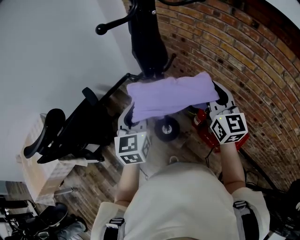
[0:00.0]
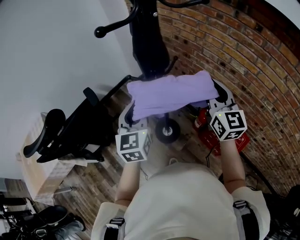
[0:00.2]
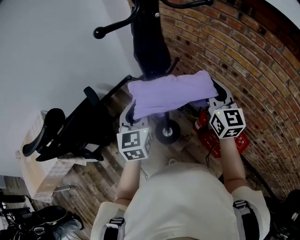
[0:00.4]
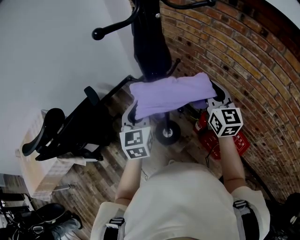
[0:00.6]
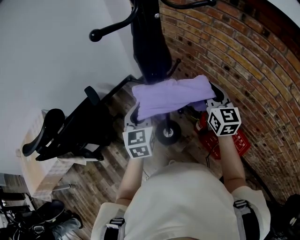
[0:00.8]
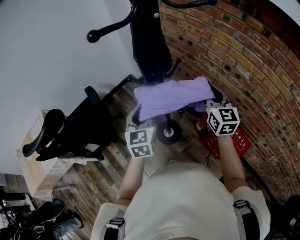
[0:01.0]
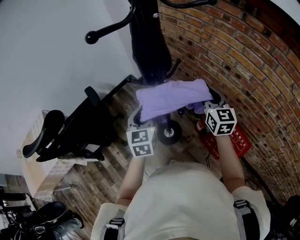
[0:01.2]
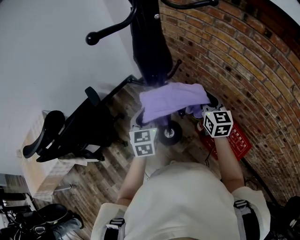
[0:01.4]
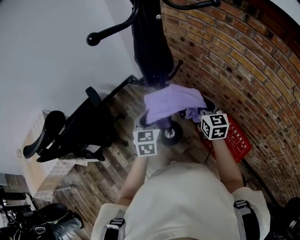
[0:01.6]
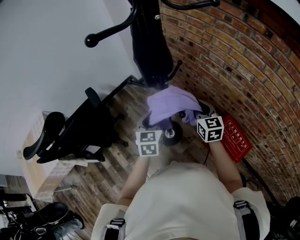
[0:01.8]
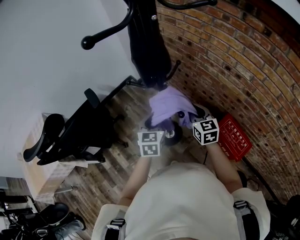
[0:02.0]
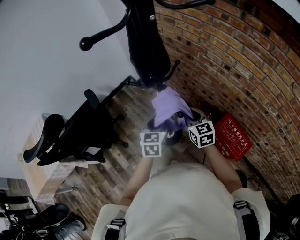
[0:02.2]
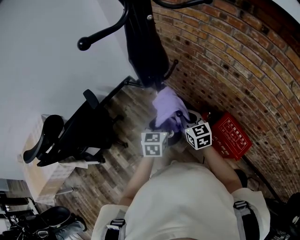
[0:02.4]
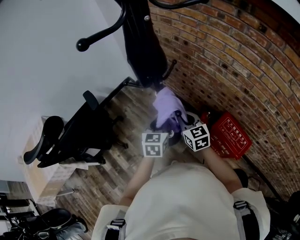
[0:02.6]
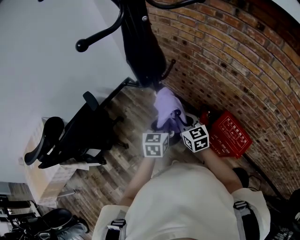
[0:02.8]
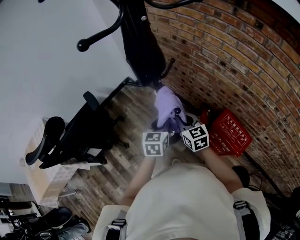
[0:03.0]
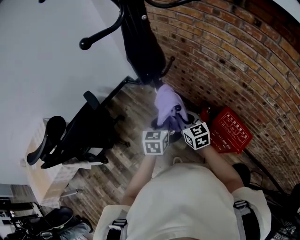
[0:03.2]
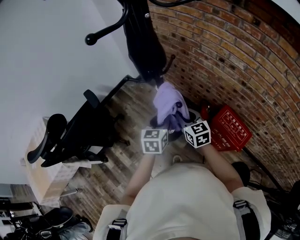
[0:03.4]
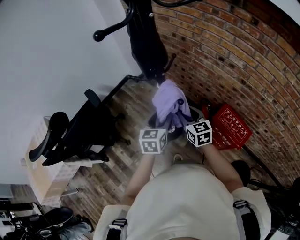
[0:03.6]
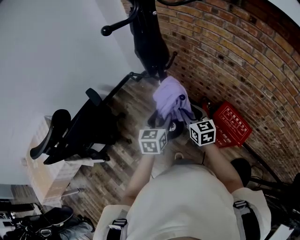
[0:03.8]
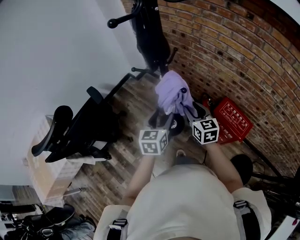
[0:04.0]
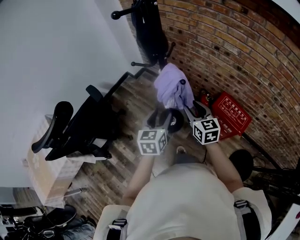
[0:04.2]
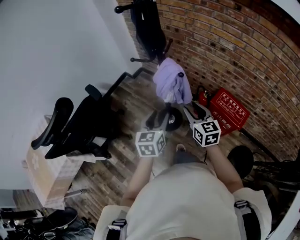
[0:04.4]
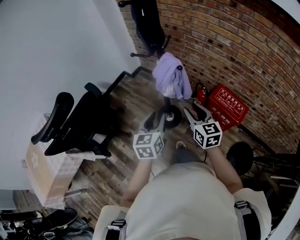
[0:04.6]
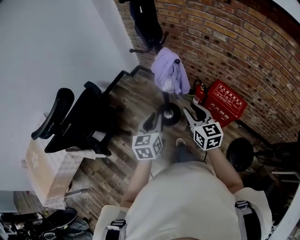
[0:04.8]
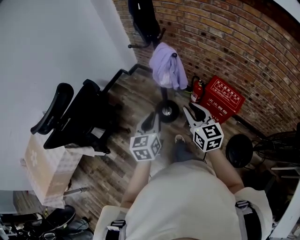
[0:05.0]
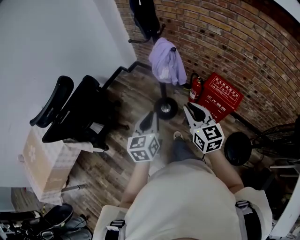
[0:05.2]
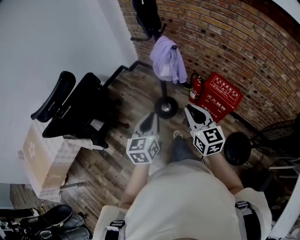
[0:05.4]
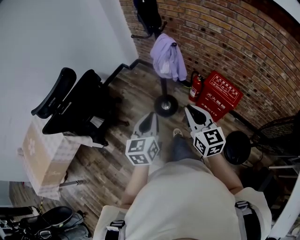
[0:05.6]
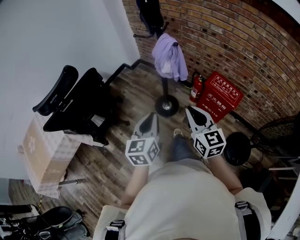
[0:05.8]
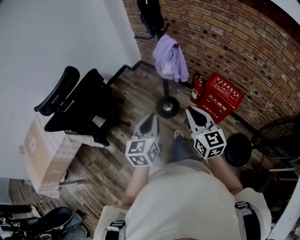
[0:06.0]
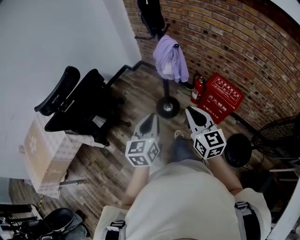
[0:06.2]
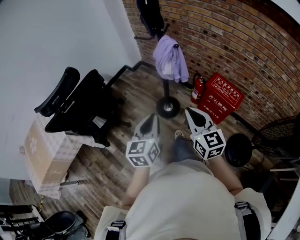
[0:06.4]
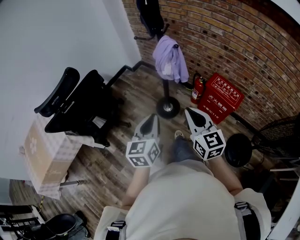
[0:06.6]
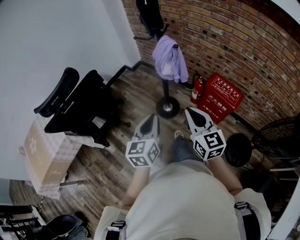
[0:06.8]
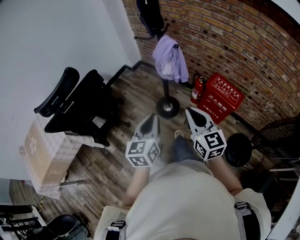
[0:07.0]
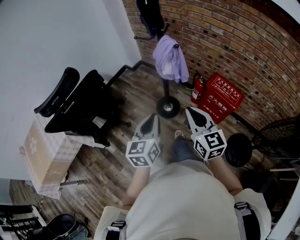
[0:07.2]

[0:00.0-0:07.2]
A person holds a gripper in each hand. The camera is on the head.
0:00.0 to 0:01.4: Both grippers move downward and forward, roughly 15 cm.
0:01.4 to 0:02.8: The left gripper travels to the right and downward by roughly 10 cm. Meanwhile the right gripper moves downward, to the left and backward, about 15 cm.
0:02.8 to 0:04.4: The left gripper travels backward and to the left by some 15 cm, and opens. The right gripper goes some 15 cm backward, and opens its fingers.
0:04.4 to 0:05.8: The two grippers go roughly 20 cm backward. The right gripper closes, while the left gripper closes its fingers.
0:05.8 to 0:07.2: The grippers move only a little.

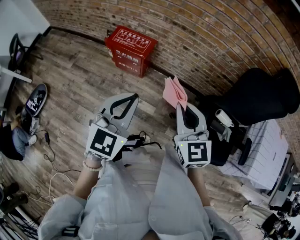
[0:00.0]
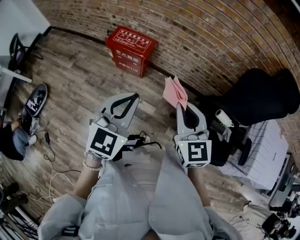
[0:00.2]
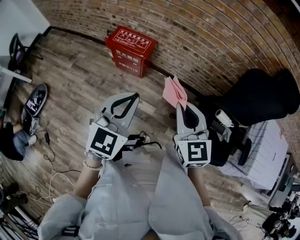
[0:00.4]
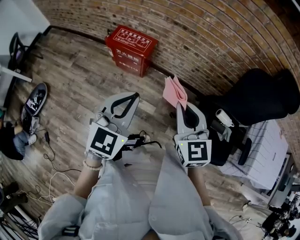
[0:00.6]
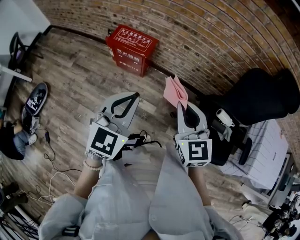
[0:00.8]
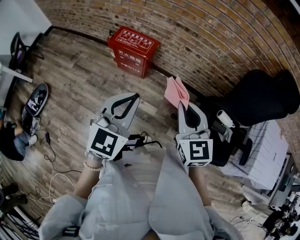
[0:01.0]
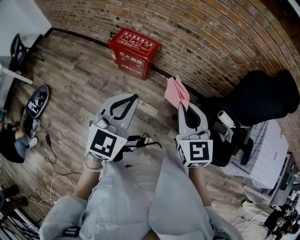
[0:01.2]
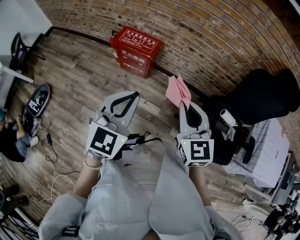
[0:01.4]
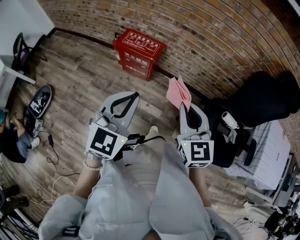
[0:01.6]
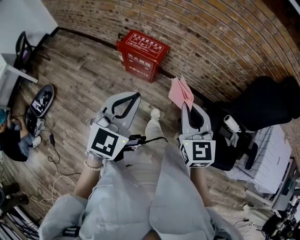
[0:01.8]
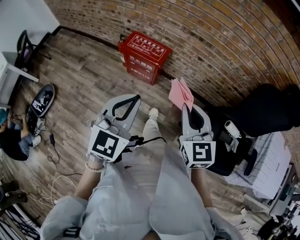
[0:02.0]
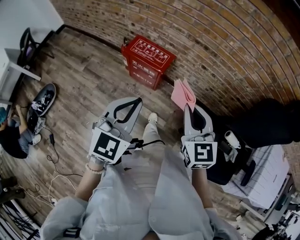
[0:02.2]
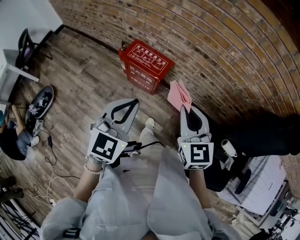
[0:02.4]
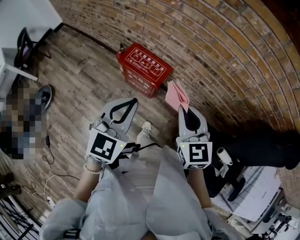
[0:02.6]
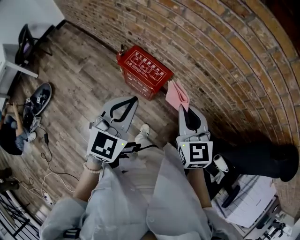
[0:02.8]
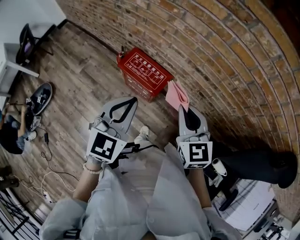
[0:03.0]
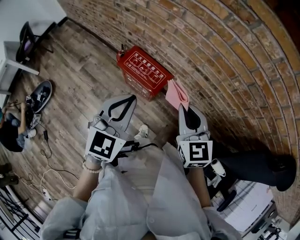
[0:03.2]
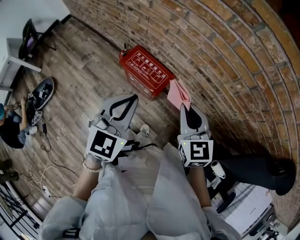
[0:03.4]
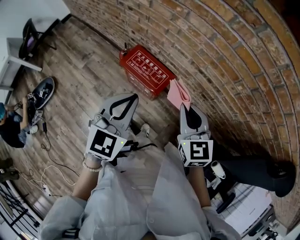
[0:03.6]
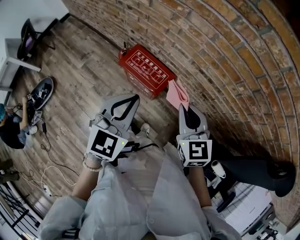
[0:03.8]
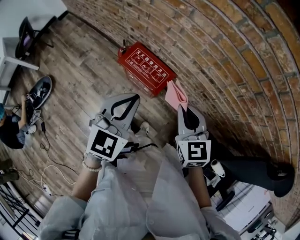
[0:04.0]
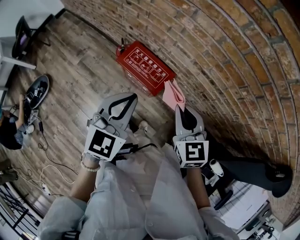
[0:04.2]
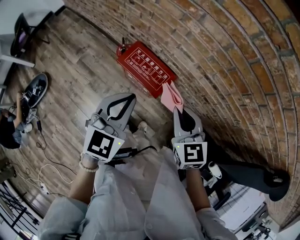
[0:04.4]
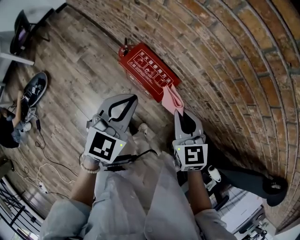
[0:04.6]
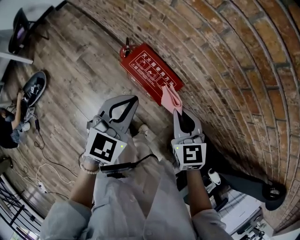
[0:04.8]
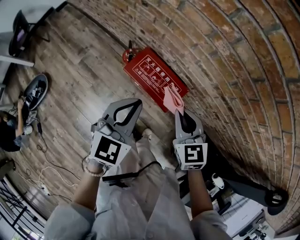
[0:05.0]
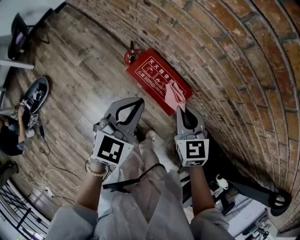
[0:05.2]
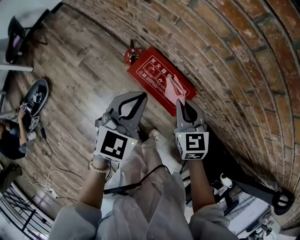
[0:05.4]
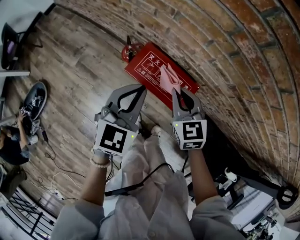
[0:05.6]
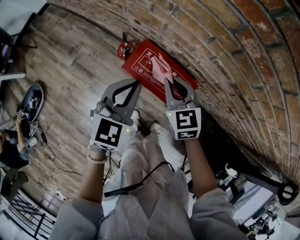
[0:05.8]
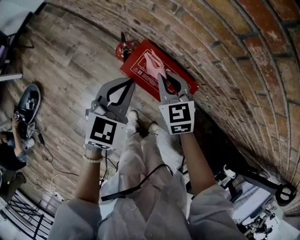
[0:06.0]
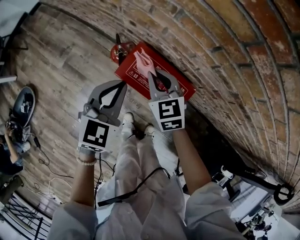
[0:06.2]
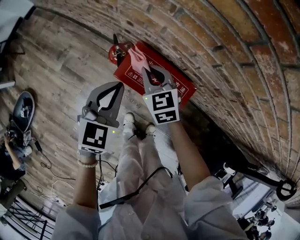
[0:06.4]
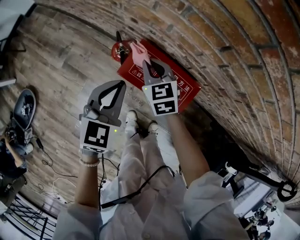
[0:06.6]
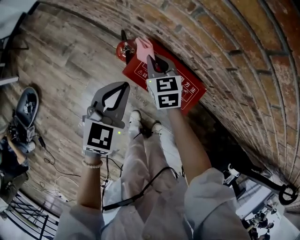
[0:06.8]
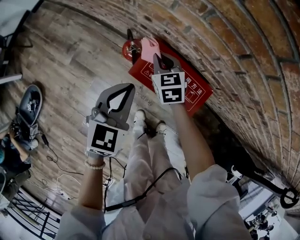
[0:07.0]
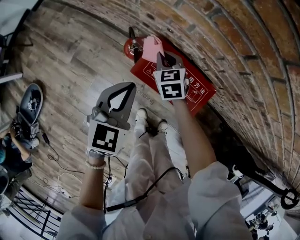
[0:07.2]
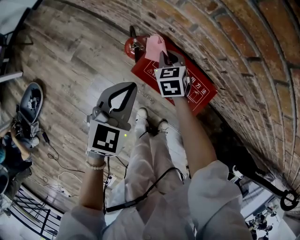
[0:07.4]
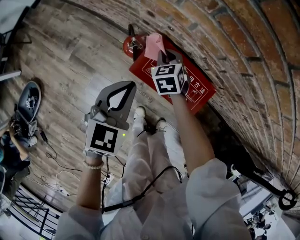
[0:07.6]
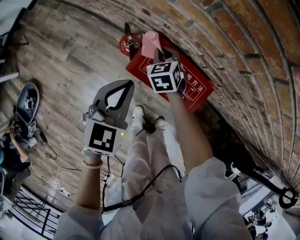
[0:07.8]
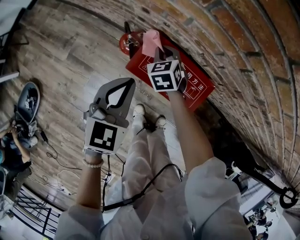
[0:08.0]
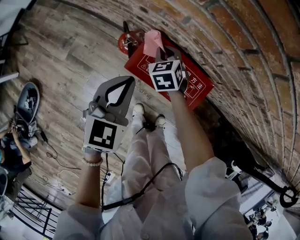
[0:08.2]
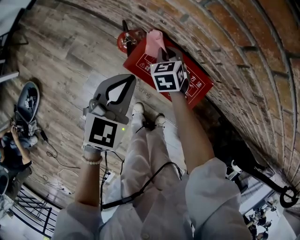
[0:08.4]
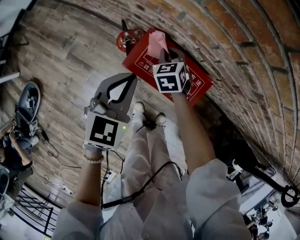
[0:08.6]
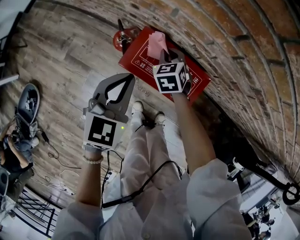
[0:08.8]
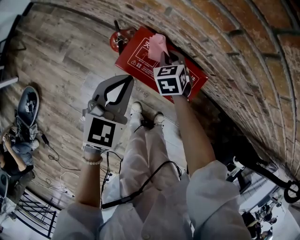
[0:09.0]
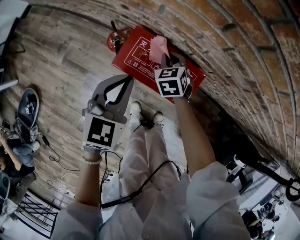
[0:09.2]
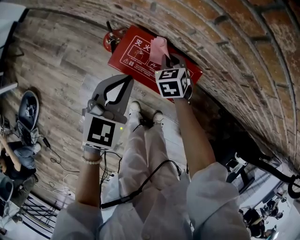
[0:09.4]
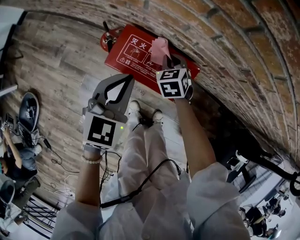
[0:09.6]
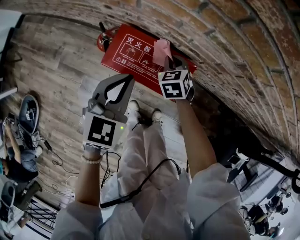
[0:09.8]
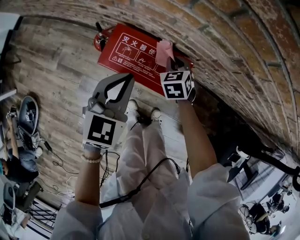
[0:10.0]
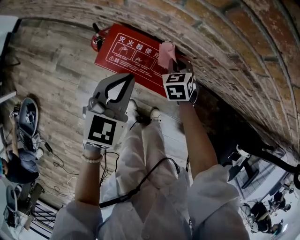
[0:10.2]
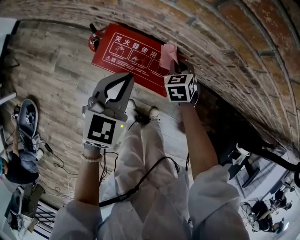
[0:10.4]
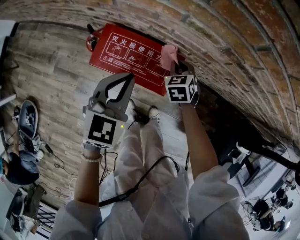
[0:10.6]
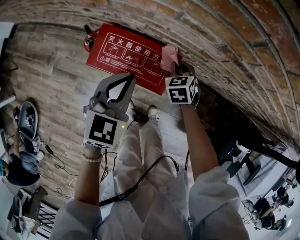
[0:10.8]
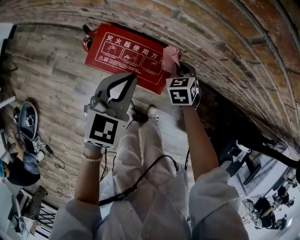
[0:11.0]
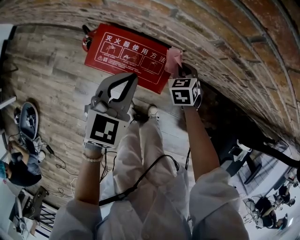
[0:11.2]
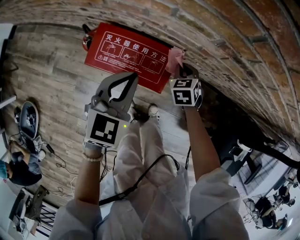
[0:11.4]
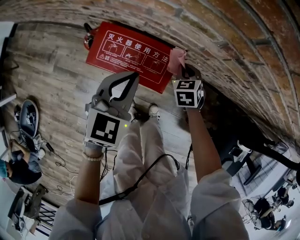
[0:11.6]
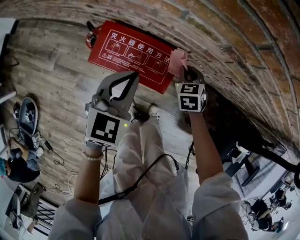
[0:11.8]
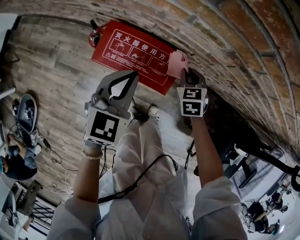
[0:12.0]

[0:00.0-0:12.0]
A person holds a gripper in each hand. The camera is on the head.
0:00.0 to 0:01.6: Both grippers move to the left, about 5 cm.
0:01.6 to 0:03.0: Both grippers move forward, about 30 cm.
0:03.0 to 0:04.4: The left gripper moves forward, about 5 cm; the right gripper heads downward and forward, covering about 10 cm.
0:04.4 to 0:06.0: The right gripper heads forward, downward and to the left, covering roughly 35 cm; the left gripper heads downward, forward and to the left, covering approximately 30 cm.
0:06.0 to 0:07.6: The left gripper shifts roughly 5 cm downward. The right gripper travels downward and forward by roughly 20 cm.
0:07.6 to 0:09.0: The right gripper shifts approximately 10 cm to the right.
0:09.0 to 0:10.4: The left gripper travels to the right by approximately 10 cm; the right gripper shifts roughly 15 cm to the right.
0:10.4 to 0:12.0: The right gripper shifts by about 5 cm.

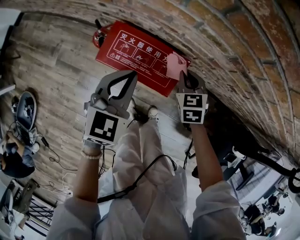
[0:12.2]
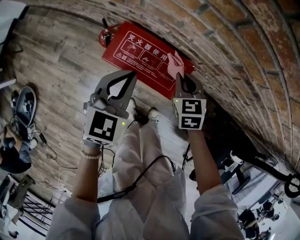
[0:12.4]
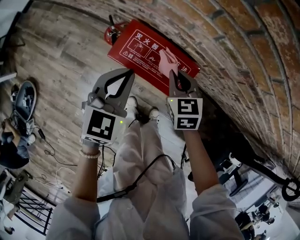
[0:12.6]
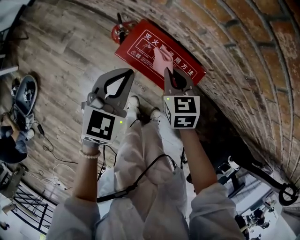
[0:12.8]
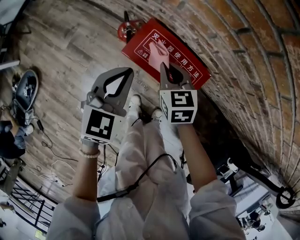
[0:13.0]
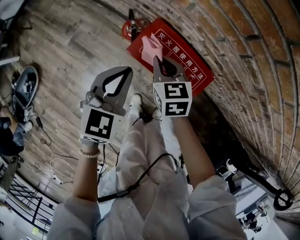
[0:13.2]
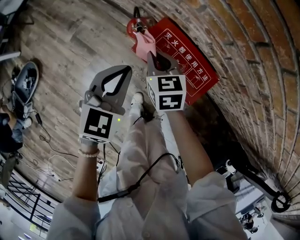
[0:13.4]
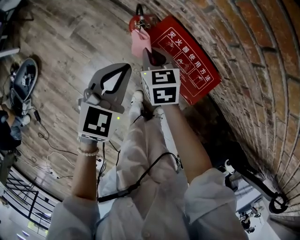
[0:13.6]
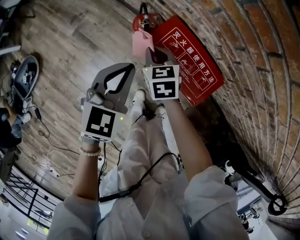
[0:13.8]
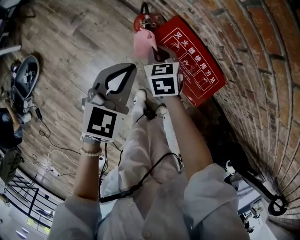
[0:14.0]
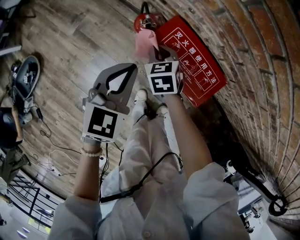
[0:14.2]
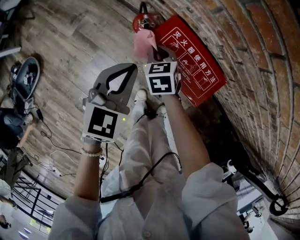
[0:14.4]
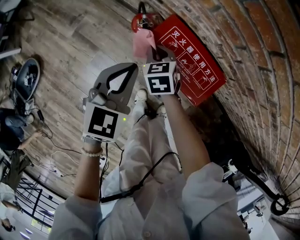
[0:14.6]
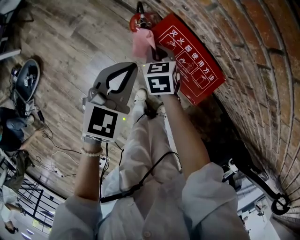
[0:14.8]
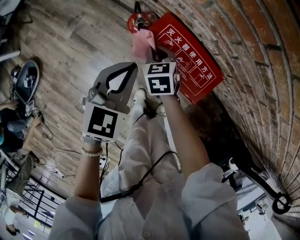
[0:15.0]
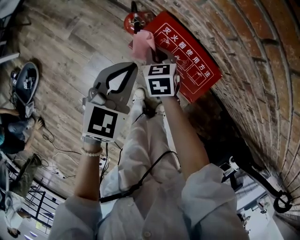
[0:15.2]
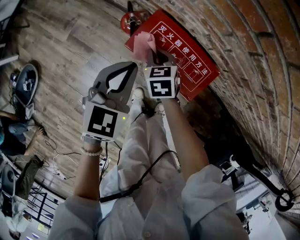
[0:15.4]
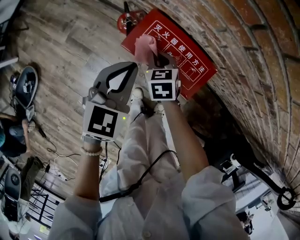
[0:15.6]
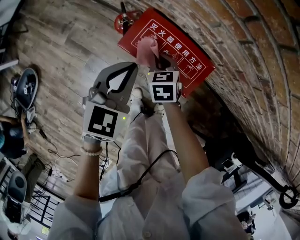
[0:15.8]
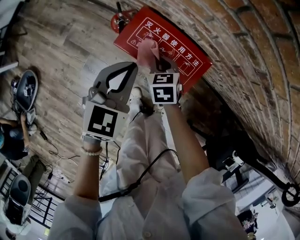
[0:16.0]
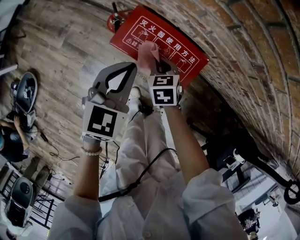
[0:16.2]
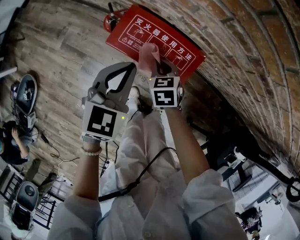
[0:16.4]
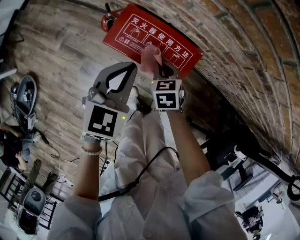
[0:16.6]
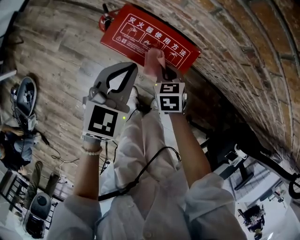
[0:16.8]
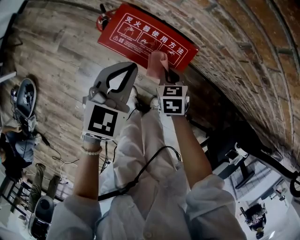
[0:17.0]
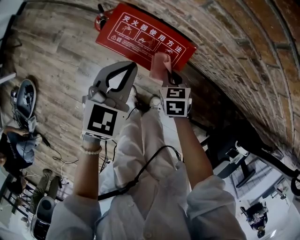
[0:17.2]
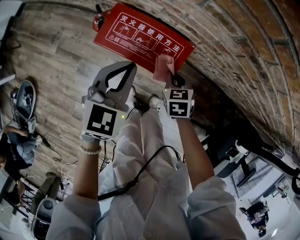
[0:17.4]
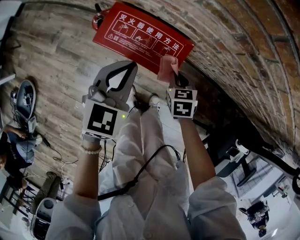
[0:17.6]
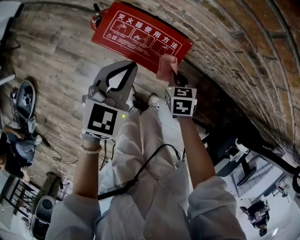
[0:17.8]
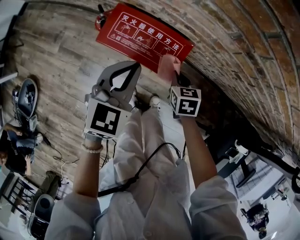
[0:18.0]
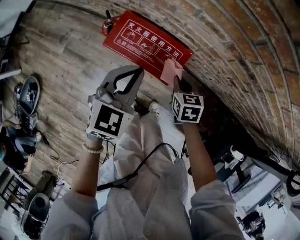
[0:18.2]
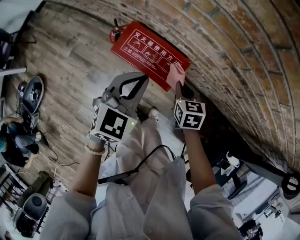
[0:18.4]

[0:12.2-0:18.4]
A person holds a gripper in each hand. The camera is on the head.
0:12.2 to 0:13.8: The left gripper heads to the left, covering roughly 15 cm; the right gripper shifts roughly 30 cm to the left, and turns by some 20 degrees.
0:13.8 to 0:15.4: Both grippers move to the right, some 5 cm.
0:15.4 to 0:16.8: The left gripper moves to the right, some 10 cm. Meanwhile the right gripper is displaced to the right and backward by approximately 15 cm.
0:16.8 to 0:18.4: The right gripper travels upward and to the right by about 15 cm; the left gripper travels upward by about 10 cm.
